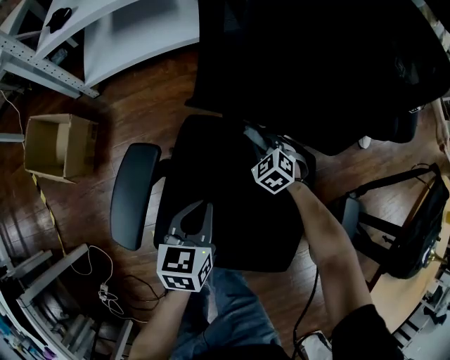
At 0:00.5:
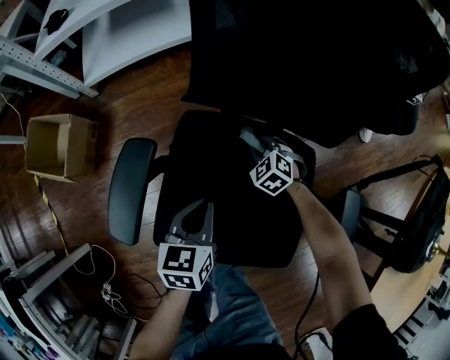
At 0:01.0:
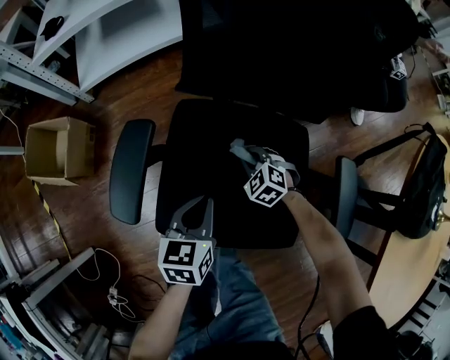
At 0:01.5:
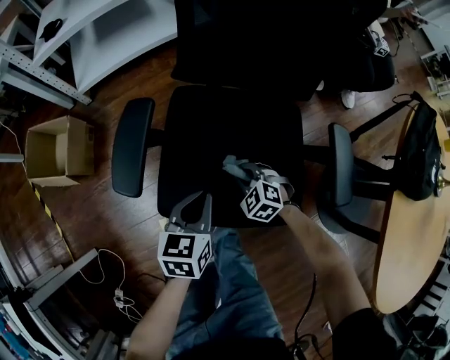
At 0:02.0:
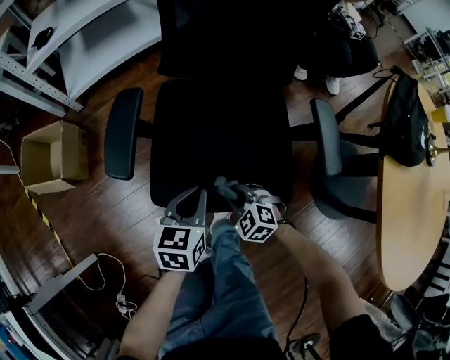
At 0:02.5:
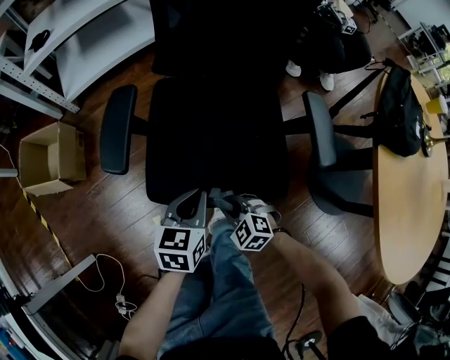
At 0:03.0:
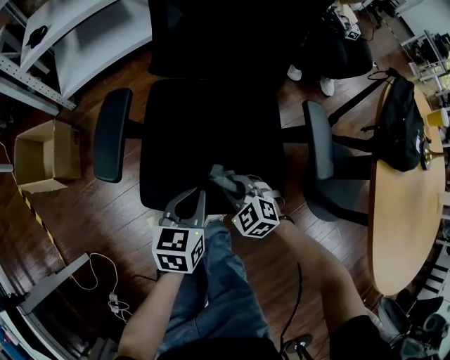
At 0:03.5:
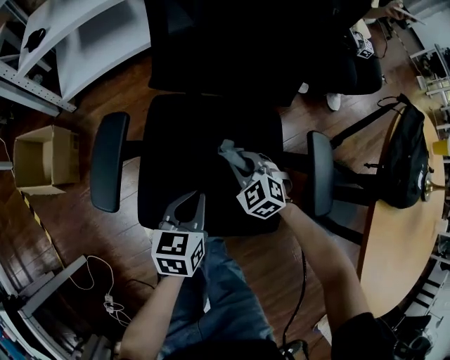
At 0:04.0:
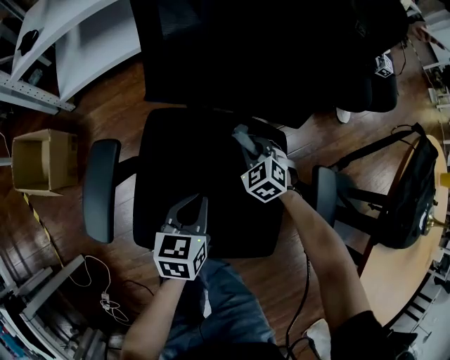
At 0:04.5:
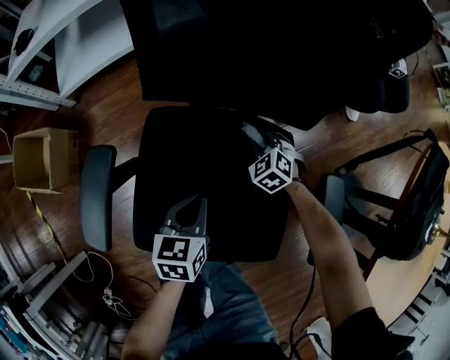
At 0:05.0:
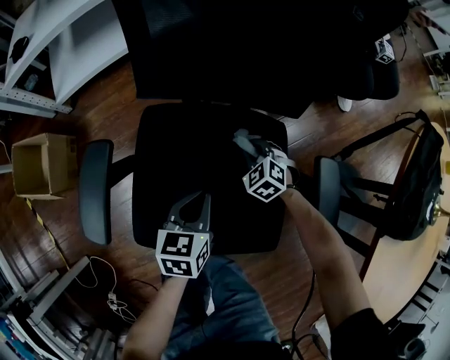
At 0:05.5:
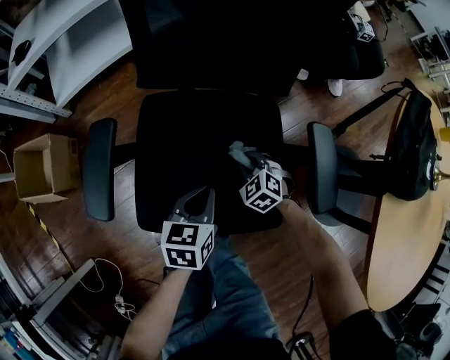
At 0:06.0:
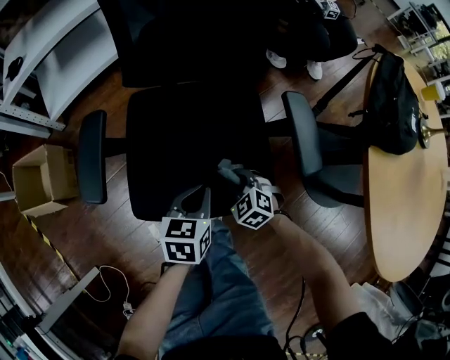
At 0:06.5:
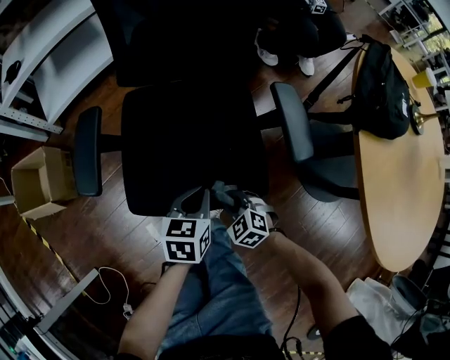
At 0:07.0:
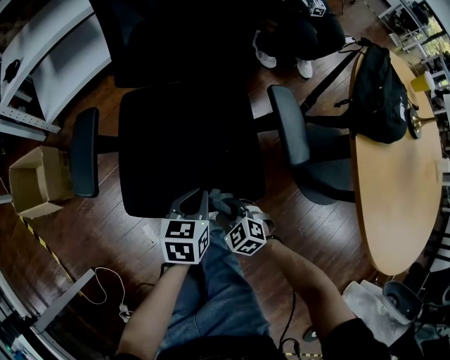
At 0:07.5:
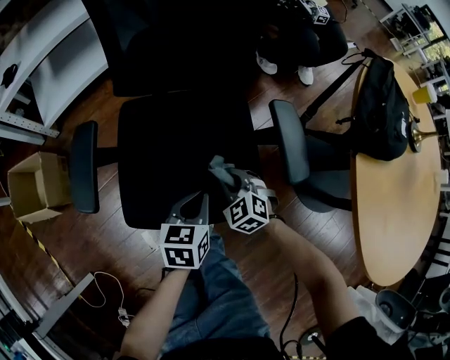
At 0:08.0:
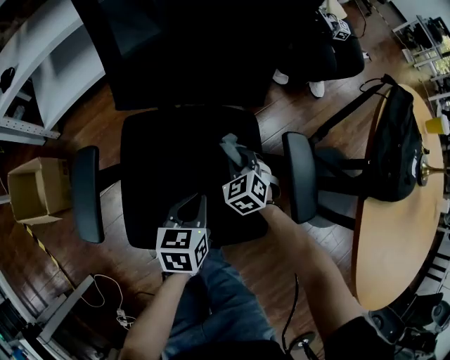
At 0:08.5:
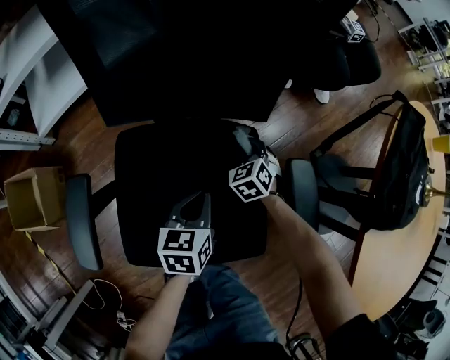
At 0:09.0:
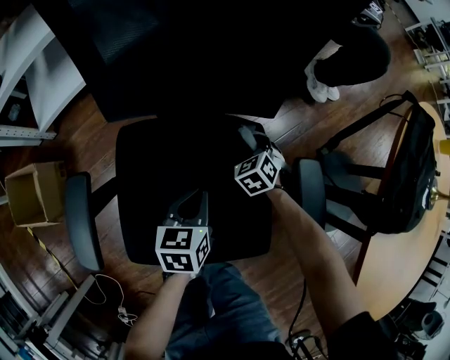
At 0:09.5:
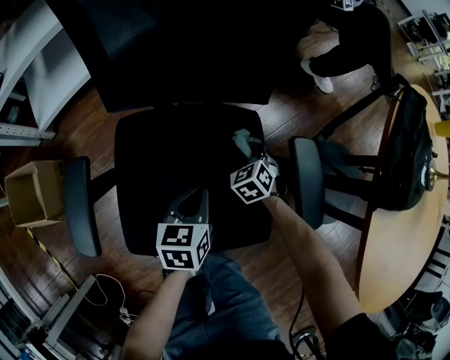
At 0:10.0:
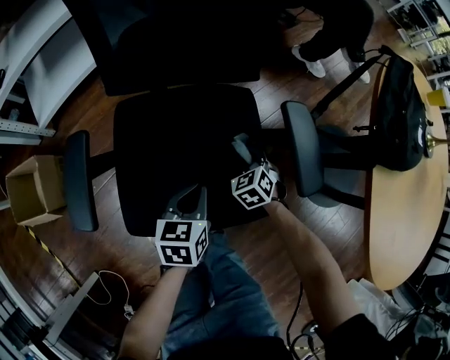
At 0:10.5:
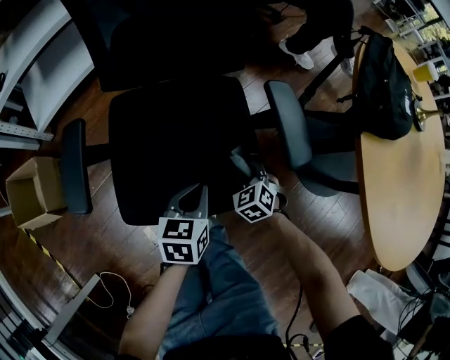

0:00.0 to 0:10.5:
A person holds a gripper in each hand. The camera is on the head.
0:00.0 to 0:02.0: The left gripper is displaced backward by approximately 20 cm. Meanwhile the right gripper moves backward, about 35 cm.
0:02.0 to 0:04.0: The right gripper goes approximately 35 cm forward and to the right. Meanwhile the left gripper is displaced forward and to the right by roughly 15 cm.
0:04.0 to 0:06.5: The right gripper is displaced backward by some 35 cm; the left gripper is displaced backward by roughly 15 cm.
0:06.5 to 0:08.5: The left gripper travels forward by some 20 cm. The right gripper goes some 40 cm forward, and changes its angle by some 30 degrees.
0:08.5 to 0:10.5: The right gripper heads backward, covering about 25 cm. Meanwhile the left gripper travels backward by roughly 15 cm.

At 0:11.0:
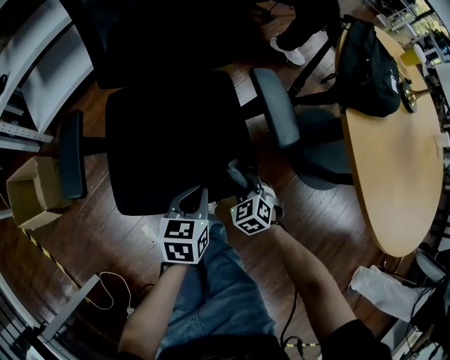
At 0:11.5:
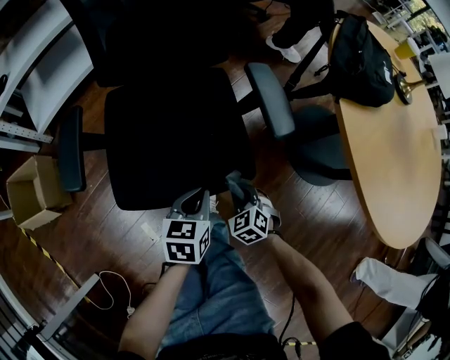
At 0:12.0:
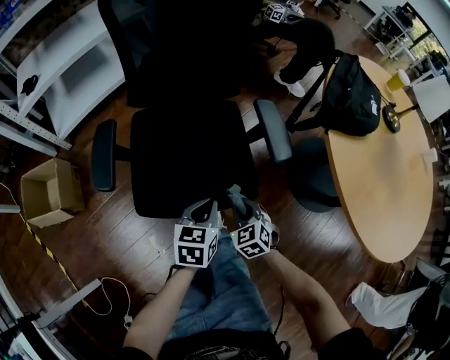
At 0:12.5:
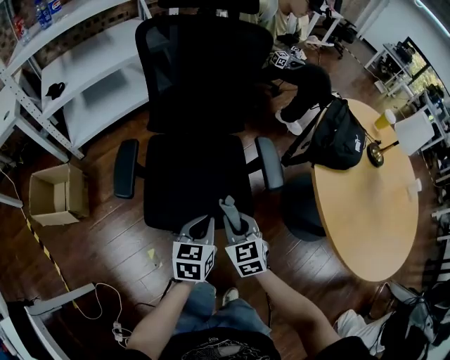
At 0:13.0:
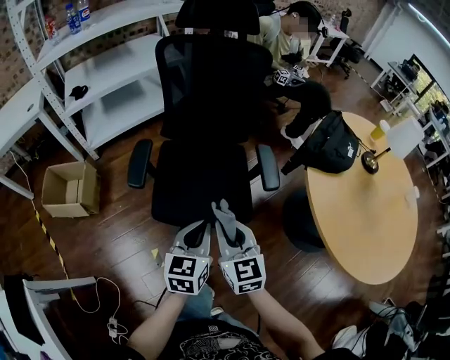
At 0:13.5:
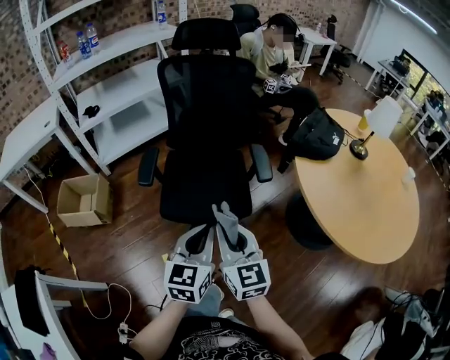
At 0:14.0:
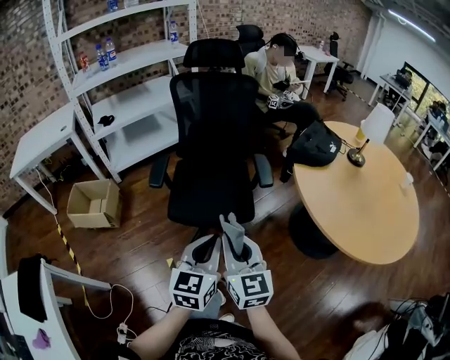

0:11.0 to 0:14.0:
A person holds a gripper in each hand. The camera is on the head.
0:11.0 to 0:12.5: The right gripper travels upward by roughly 25 cm, and changes its angle by some 20 degrees. Meanwhile the left gripper goes approximately 15 cm upward.
0:12.5 to 0:14.0: Both grippers travel together backward and upward, approximately 35 cm. The right gripper turns by roughly 30 degrees, while the left gripper swivels some 20 degrees.

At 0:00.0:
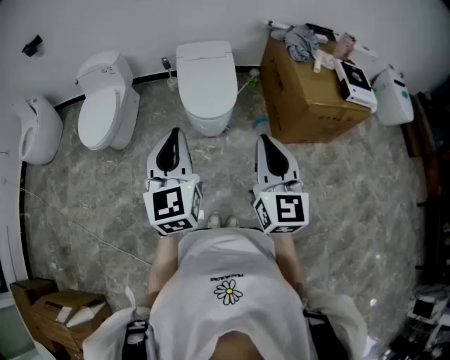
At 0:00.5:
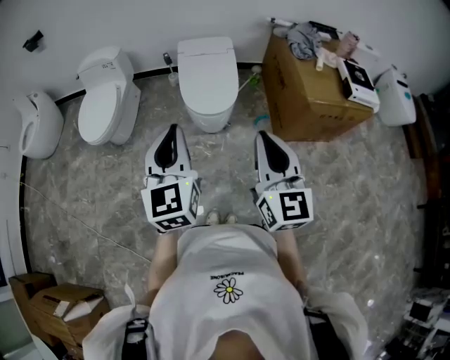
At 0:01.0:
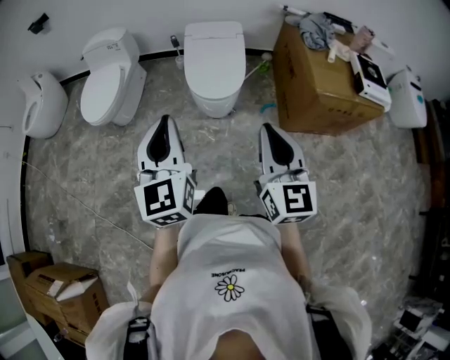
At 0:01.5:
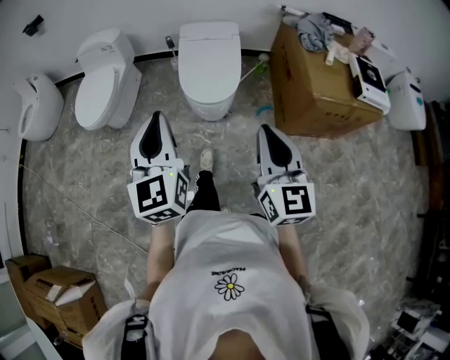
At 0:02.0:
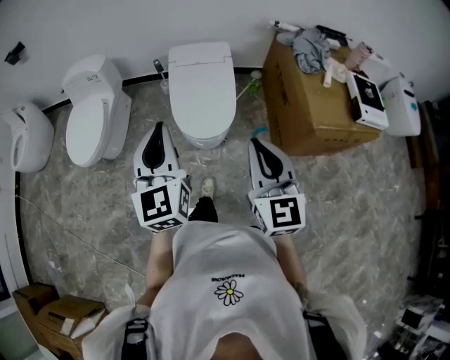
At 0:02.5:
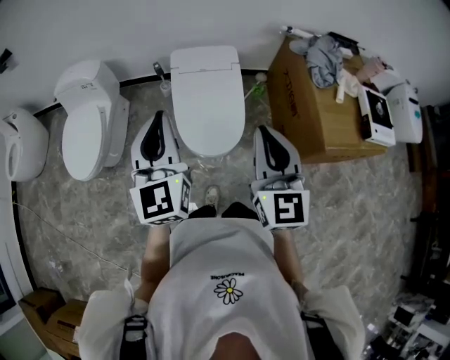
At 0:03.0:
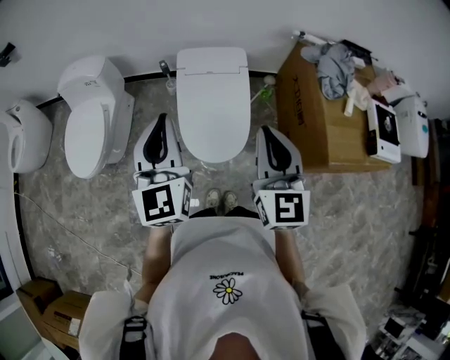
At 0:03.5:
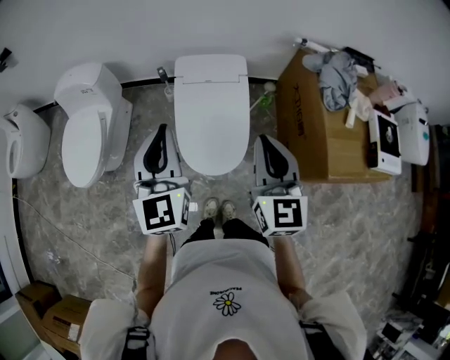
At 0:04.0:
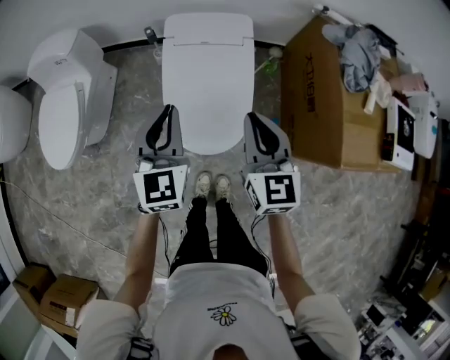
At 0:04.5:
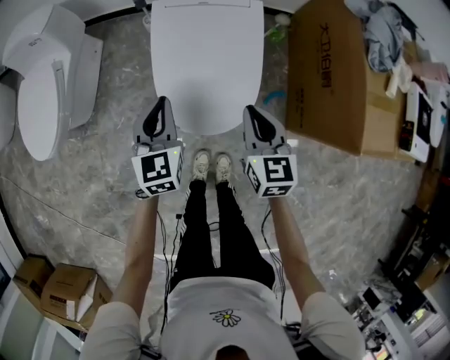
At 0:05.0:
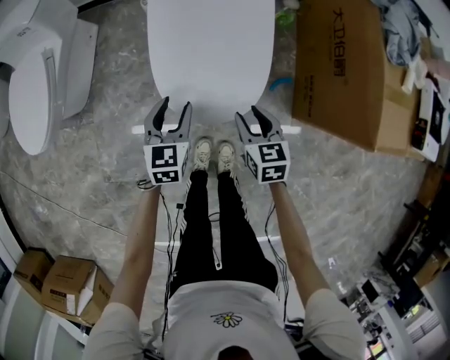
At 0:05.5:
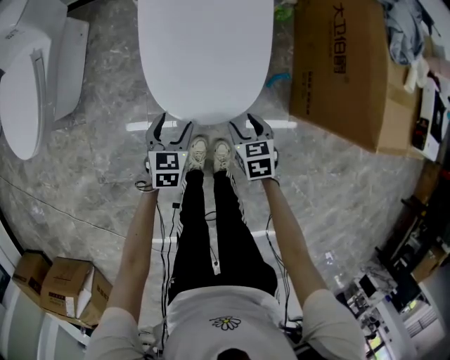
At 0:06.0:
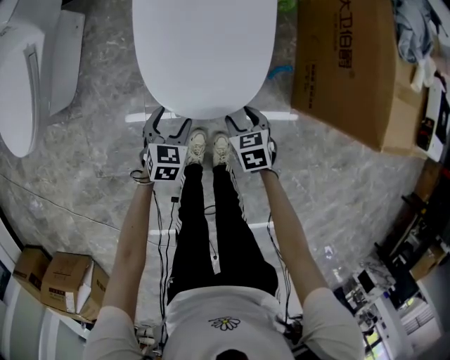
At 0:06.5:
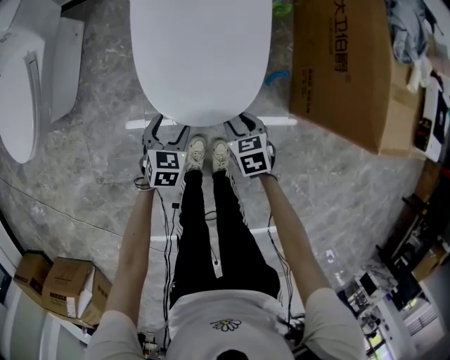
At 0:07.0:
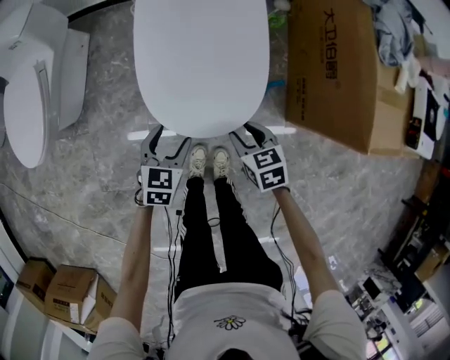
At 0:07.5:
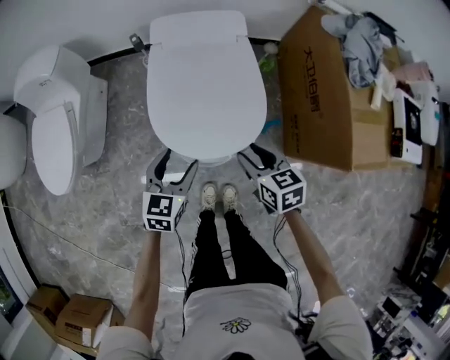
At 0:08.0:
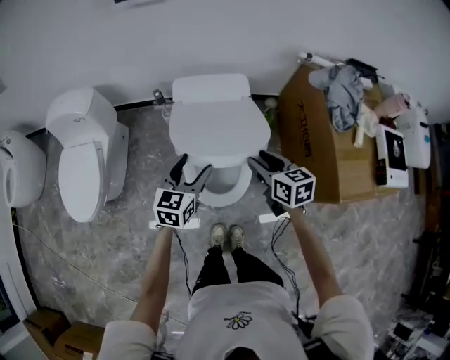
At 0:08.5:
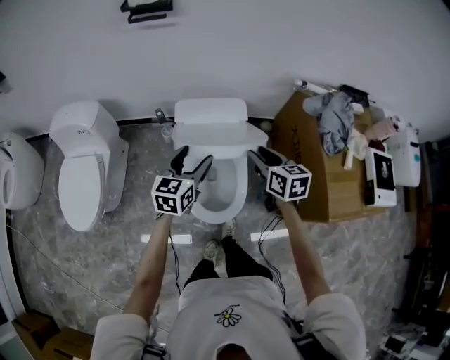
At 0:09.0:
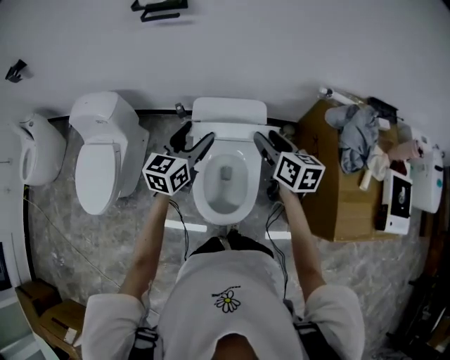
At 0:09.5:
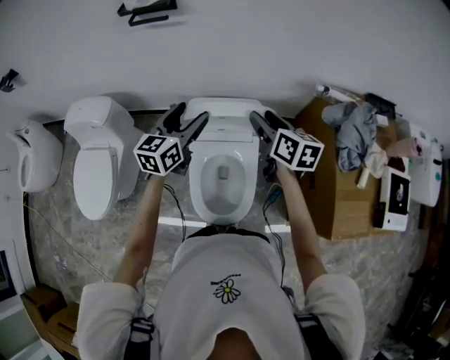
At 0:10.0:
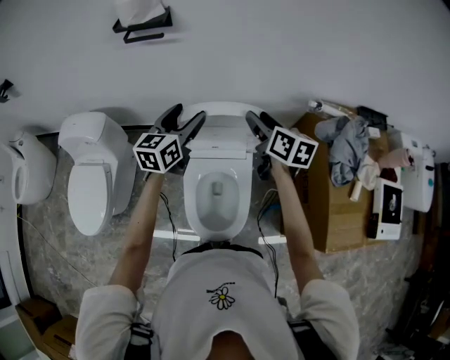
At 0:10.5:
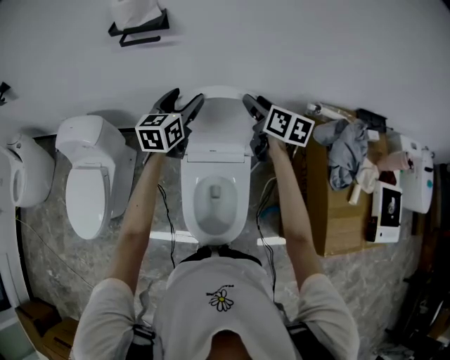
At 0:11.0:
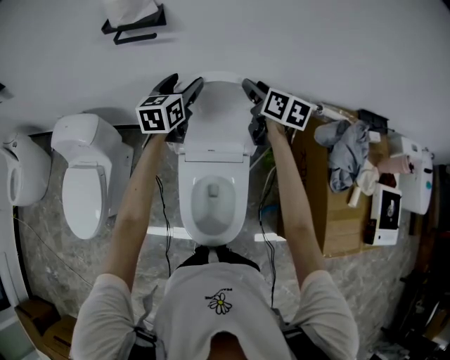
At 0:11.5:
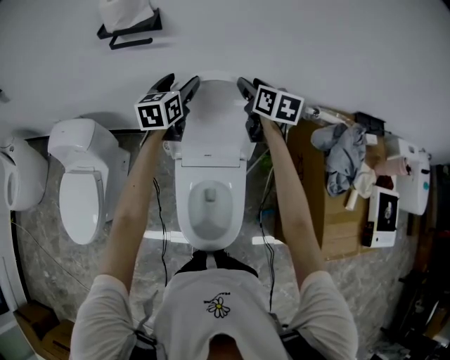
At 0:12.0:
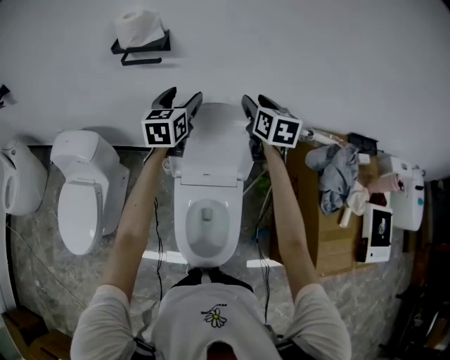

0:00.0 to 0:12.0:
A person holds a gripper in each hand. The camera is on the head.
0:00.0 to 0:02.0: Both grippers travel together forward, approximately 20 cm.
0:02.0 to 0:04.0: Both grippers move forward and downward, some 35 cm.
0:04.0 to 0:06.0: Both grippers move downward, roughly 40 cm. The right gripper tilts its fingers some 50 degrees downward, and opens its fingers; the left gripper tips its fingers downward by approximately 40 degrees, and opens up.
0:06.0 to 0:08.0: The grippers both shift upward and forward by roughly 40 cm. The right gripper turns by some 30 degrees. The left gripper swivels some 30 degrees.
0:08.0 to 0:10.0: Both grippers move forward and upward, approximately 35 cm.
0:10.0 to 0:12.0: The left gripper heads forward, covering approximately 15 cm; the right gripper travels forward and upward by approximately 15 cm, and swivels roughly 20 degrees.

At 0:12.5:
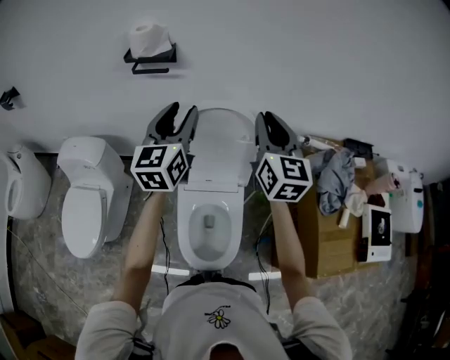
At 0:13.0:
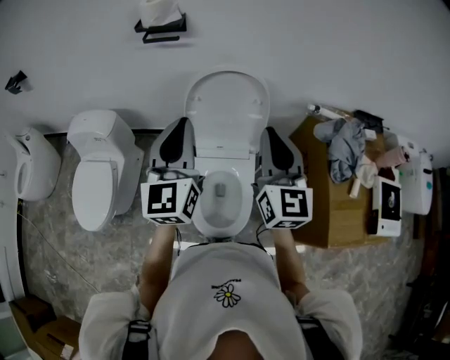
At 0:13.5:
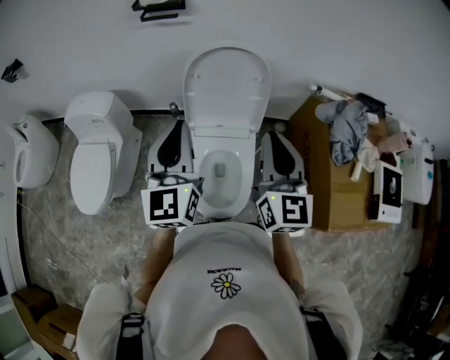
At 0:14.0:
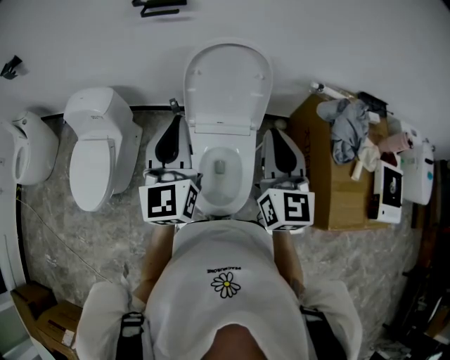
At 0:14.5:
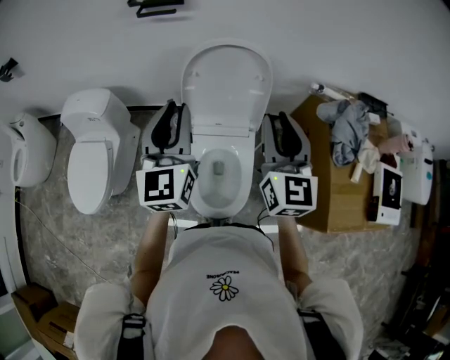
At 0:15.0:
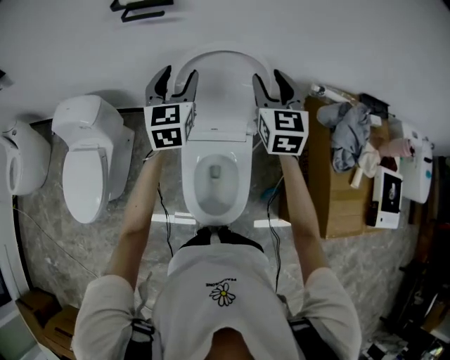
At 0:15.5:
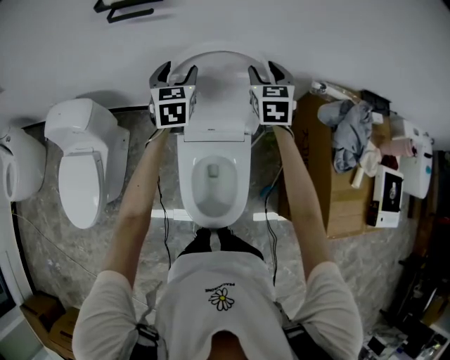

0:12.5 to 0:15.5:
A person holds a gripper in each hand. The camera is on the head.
0:12.5 to 0:14.0: The grippers both shift backward by about 20 cm. The left gripper closes its fingers.
0:14.0 to 0:15.5: Both grippers travel together forward and downward, roughly 35 cm. The right gripper changes its angle by some 30 degrees, and opens; the left gripper rotates about 30 degrees, and opens up.
